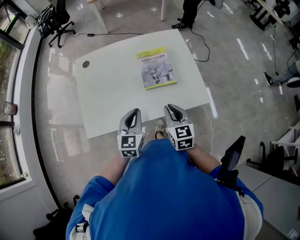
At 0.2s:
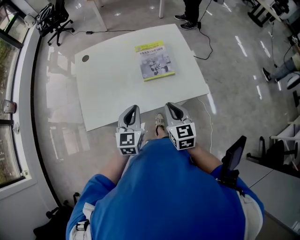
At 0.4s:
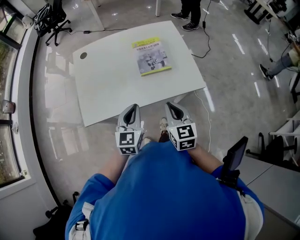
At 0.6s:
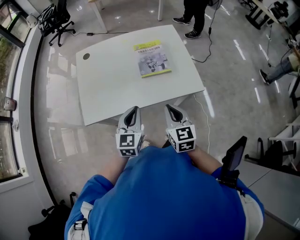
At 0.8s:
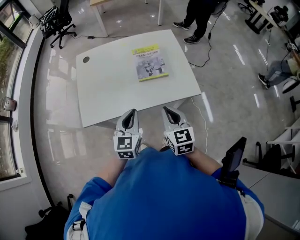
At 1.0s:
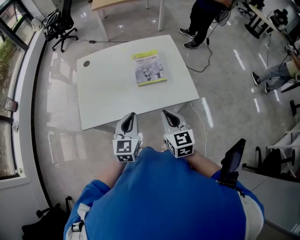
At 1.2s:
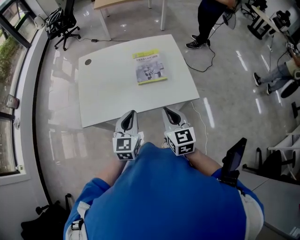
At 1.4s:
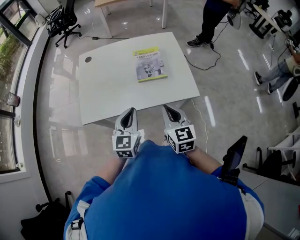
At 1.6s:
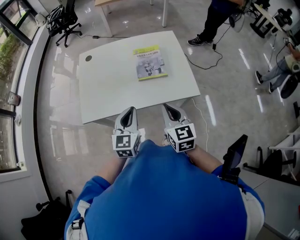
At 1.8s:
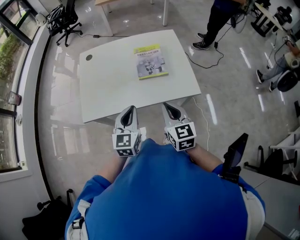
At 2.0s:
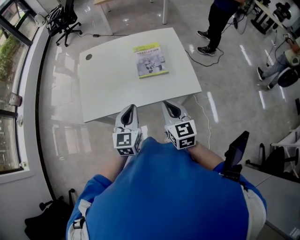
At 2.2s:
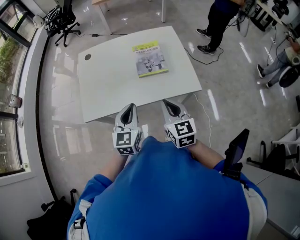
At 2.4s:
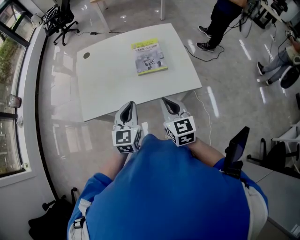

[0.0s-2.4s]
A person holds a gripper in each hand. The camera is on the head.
0.0s to 1.2s: Both grippers travel together backward and upward, approximately 10 cm.
1.2s to 2.4s: Both grippers stay about where they are.

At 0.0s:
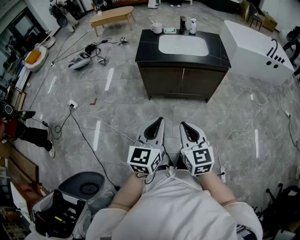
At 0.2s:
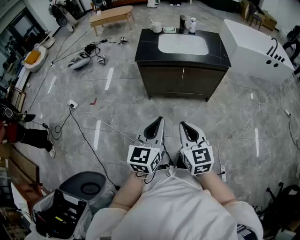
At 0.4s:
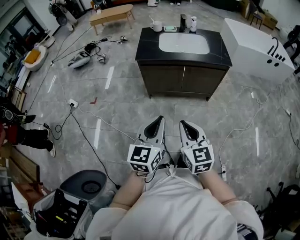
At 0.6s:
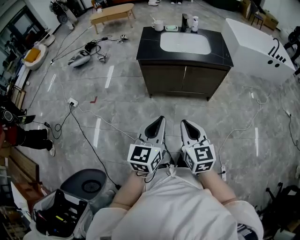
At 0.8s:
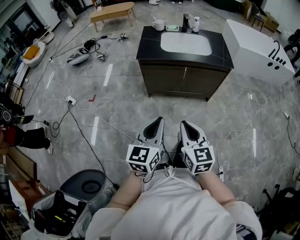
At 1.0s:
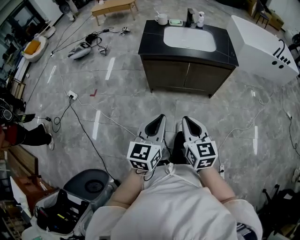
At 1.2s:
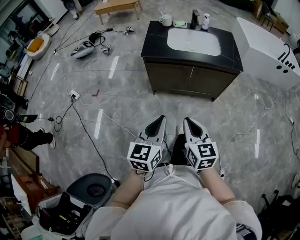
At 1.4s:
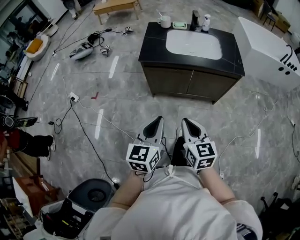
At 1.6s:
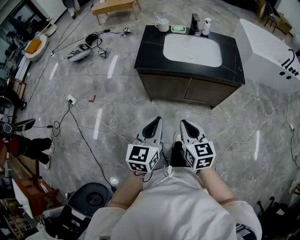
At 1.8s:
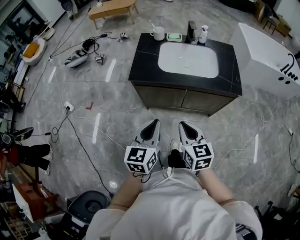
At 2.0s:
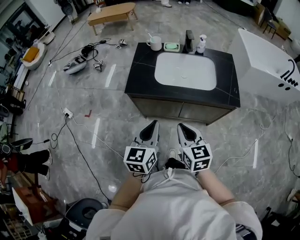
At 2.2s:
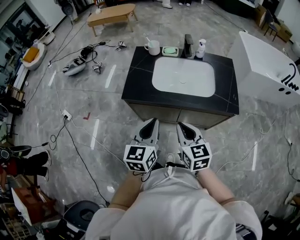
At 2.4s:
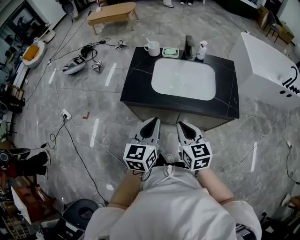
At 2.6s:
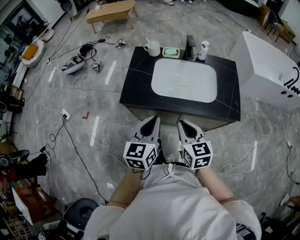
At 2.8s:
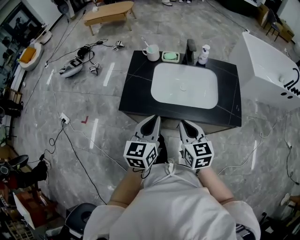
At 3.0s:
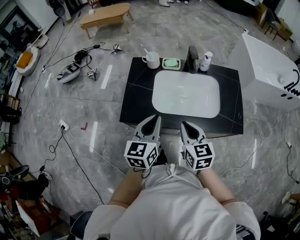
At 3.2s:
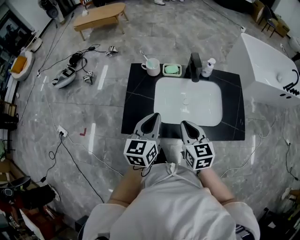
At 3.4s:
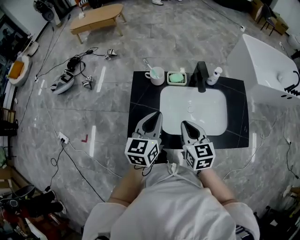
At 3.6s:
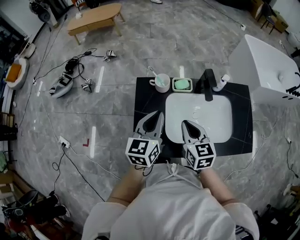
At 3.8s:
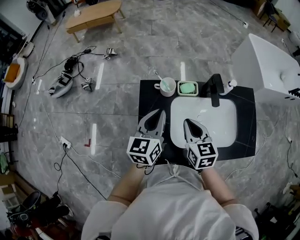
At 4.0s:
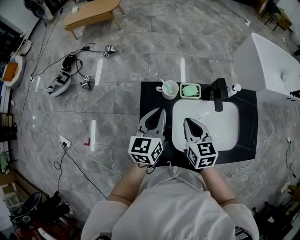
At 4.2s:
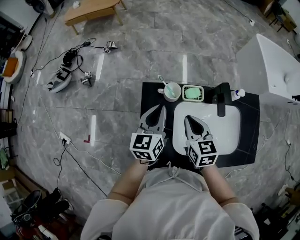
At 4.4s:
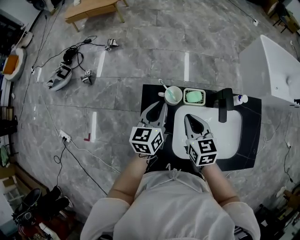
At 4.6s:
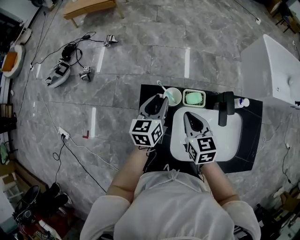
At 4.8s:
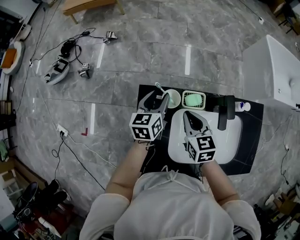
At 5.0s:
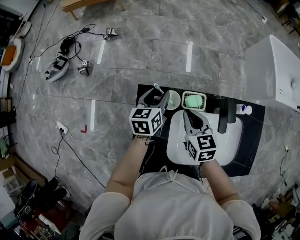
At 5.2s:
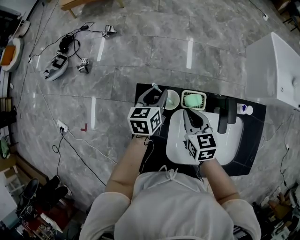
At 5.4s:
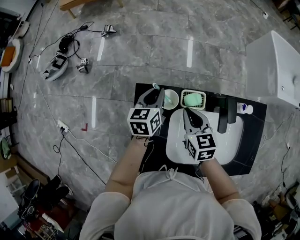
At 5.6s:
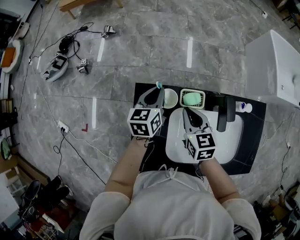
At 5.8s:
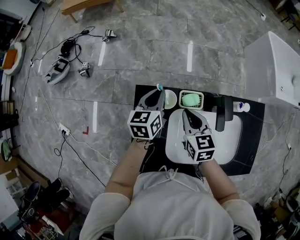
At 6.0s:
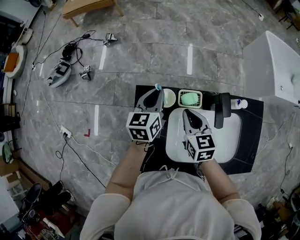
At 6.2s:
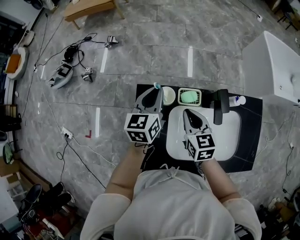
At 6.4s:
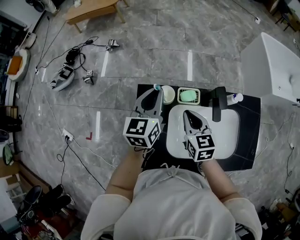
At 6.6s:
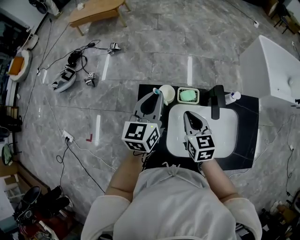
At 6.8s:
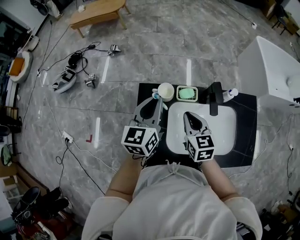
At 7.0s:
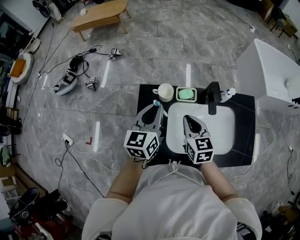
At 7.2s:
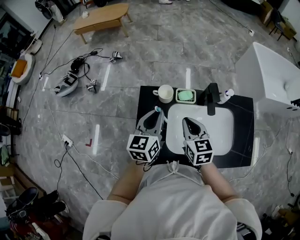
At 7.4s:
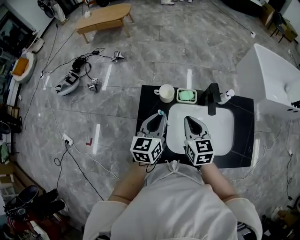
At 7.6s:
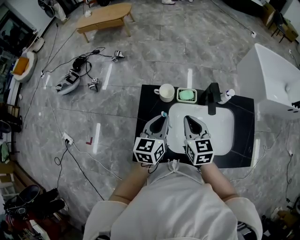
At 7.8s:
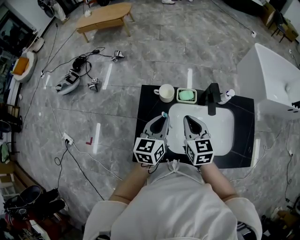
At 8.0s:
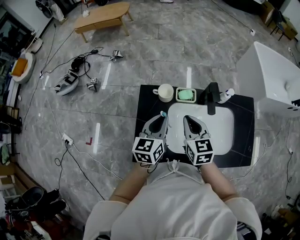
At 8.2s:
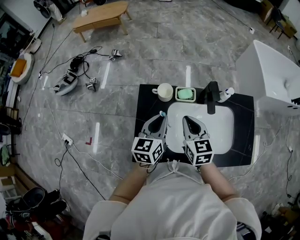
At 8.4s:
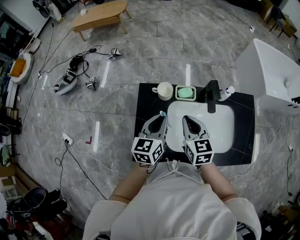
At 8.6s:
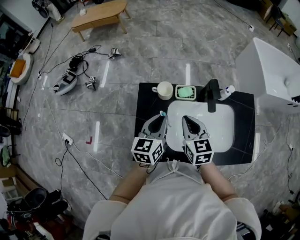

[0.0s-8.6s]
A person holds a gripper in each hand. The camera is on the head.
0.0s to 1.4s: Both grippers travel together forward, some 10 cm.
1.4s to 2.8s: Both grippers move forward, roughly 35 cm.
2.8s to 4.4s: Both grippers move forward, approximately 40 cm.
4.4s to 5.8s: The right gripper travels forward by about 5 cm. The left gripper shifts roughly 10 cm forward, and opens, then closes again.
5.8s to 7.2s: The left gripper shifts roughly 20 cm backward and upward. The right gripper moves backward and upward, approximately 10 cm.
7.2s to 8.6s: The grippers make only small movements.

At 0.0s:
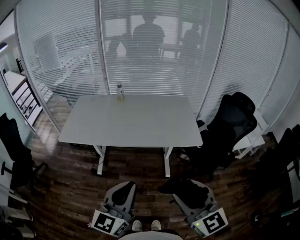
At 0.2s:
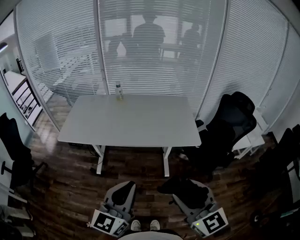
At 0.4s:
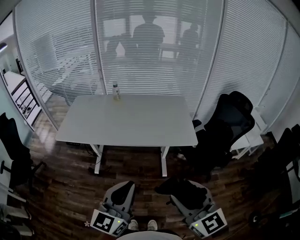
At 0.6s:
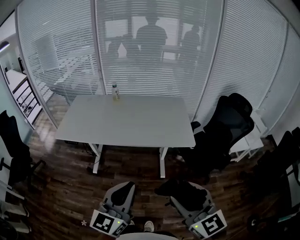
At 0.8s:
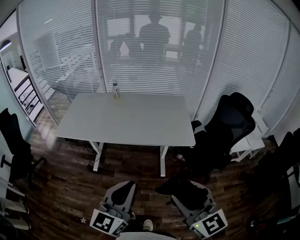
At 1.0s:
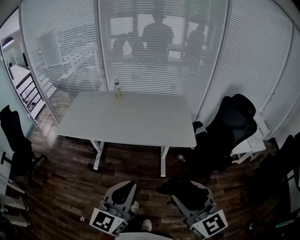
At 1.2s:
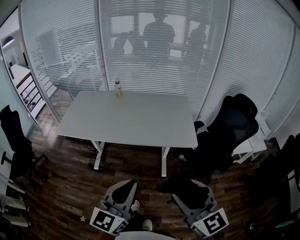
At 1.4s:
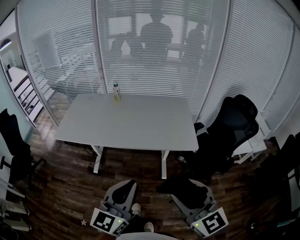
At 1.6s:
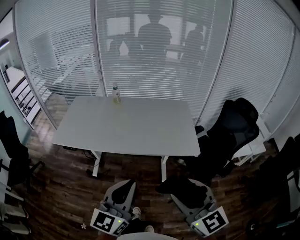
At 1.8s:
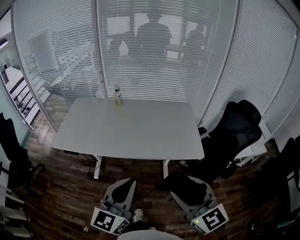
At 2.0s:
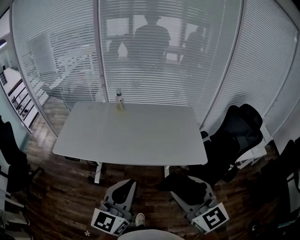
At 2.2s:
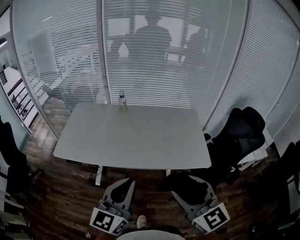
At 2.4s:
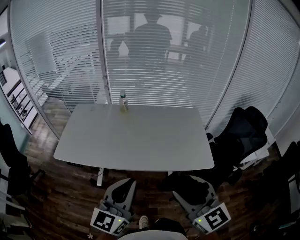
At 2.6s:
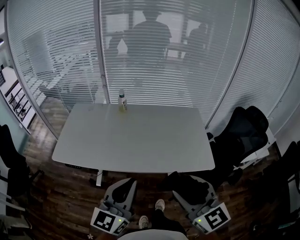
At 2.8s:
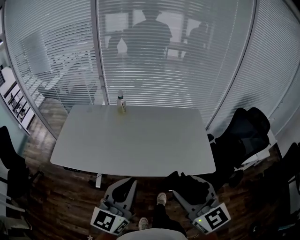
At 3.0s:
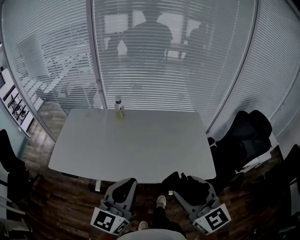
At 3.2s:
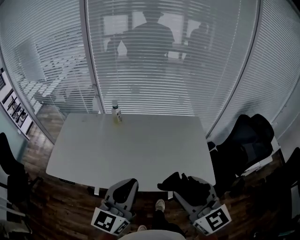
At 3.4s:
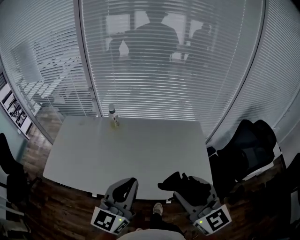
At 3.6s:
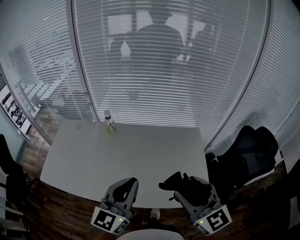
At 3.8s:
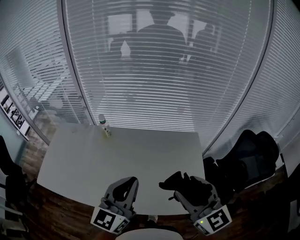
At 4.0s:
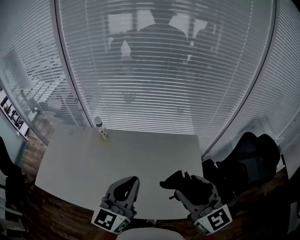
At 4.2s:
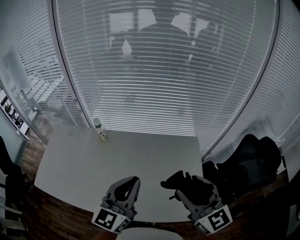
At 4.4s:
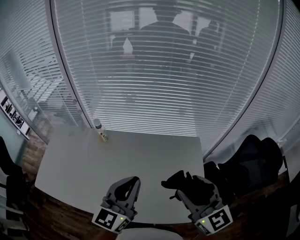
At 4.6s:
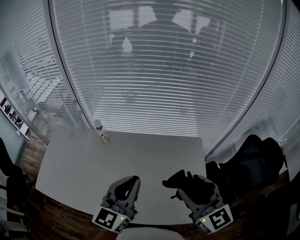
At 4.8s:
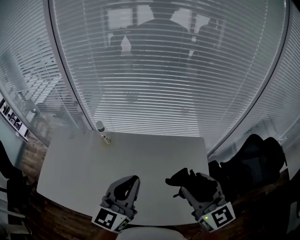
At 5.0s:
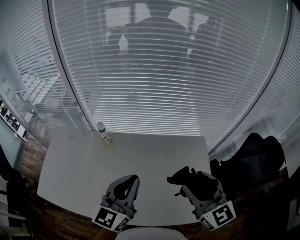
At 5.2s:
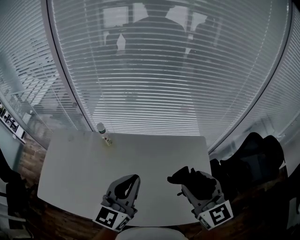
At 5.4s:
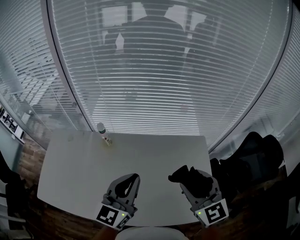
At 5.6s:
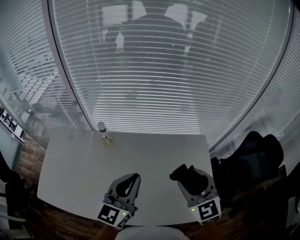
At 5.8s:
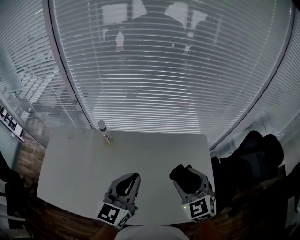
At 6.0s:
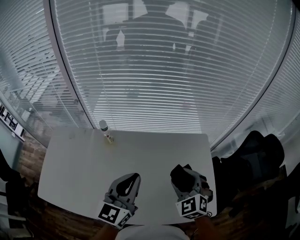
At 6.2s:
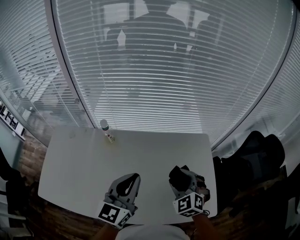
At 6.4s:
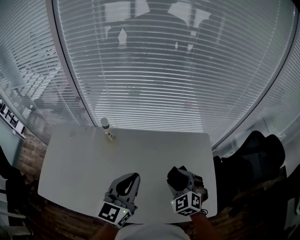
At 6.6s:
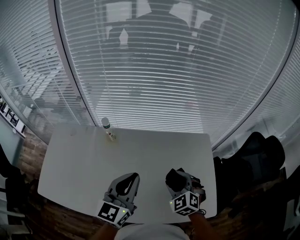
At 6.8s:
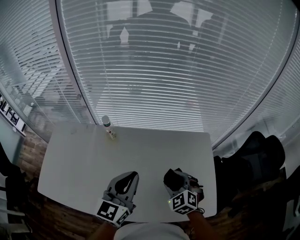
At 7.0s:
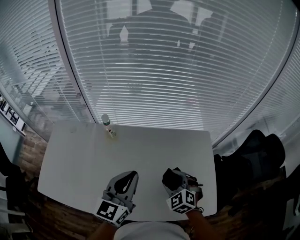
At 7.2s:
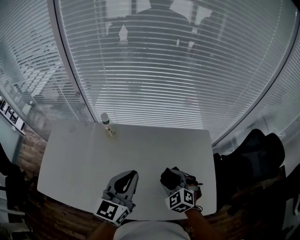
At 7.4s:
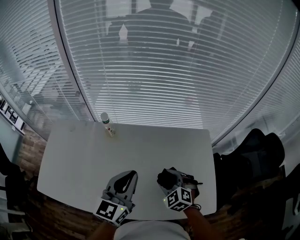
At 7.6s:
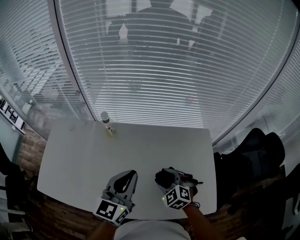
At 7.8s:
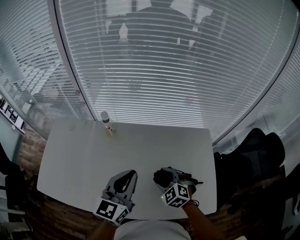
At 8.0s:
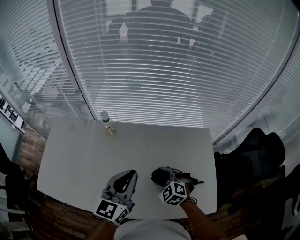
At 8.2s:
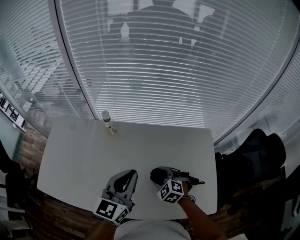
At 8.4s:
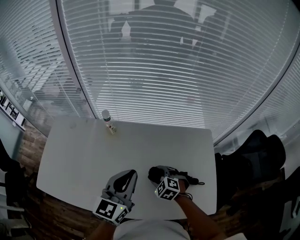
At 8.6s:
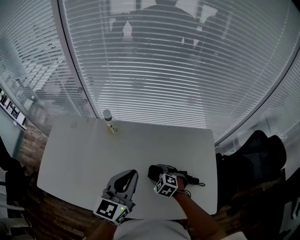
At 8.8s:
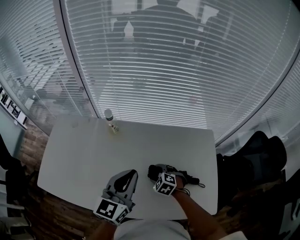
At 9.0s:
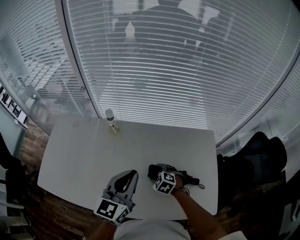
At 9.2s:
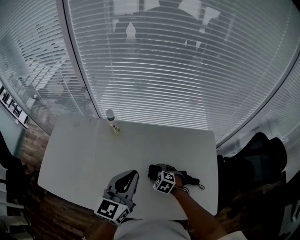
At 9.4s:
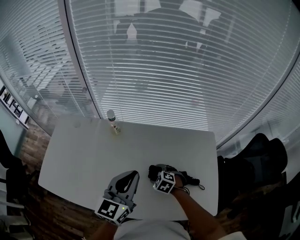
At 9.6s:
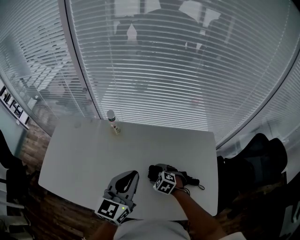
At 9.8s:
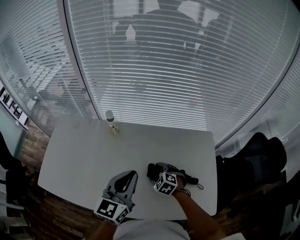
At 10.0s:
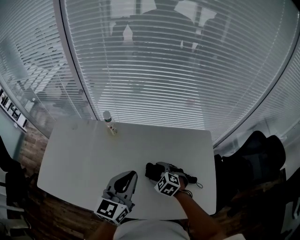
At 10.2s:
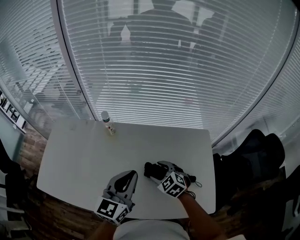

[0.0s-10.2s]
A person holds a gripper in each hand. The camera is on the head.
0.0s to 1.4s: Both grippers move to the right, about 5 cm.
1.4s to 3.0s: The grippers both shift forward by about 25 cm.
3.0s to 4.4s: Both grippers travel together forward and to the right, approximately 30 cm.
4.4s to 5.8s: The right gripper goes approximately 15 cm downward, to the left and forward, and turns by some 30 degrees; the left gripper is displaced to the left by about 10 cm.
5.8s to 7.2s: The right gripper is displaced downward by about 15 cm.
7.2s to 8.8s: The right gripper goes some 15 cm downward and to the left, and rotates roughly 20 degrees.
8.8s to 10.2s: The right gripper heads upward, covering some 10 cm.

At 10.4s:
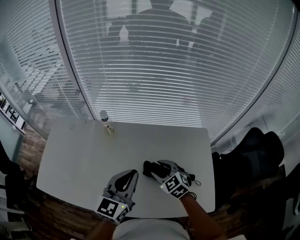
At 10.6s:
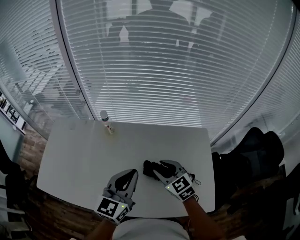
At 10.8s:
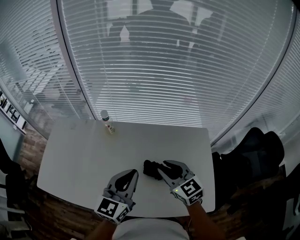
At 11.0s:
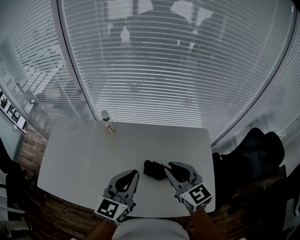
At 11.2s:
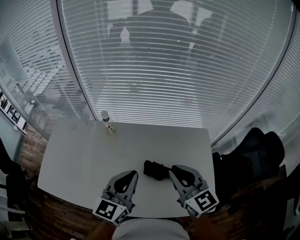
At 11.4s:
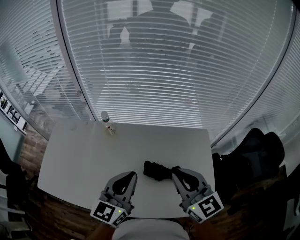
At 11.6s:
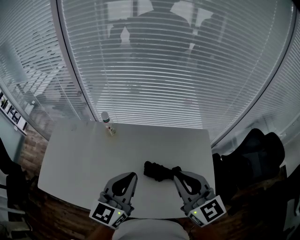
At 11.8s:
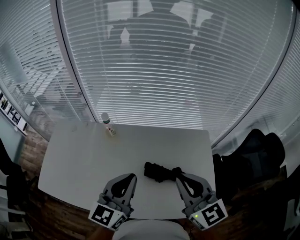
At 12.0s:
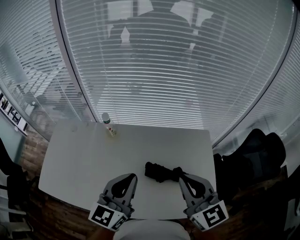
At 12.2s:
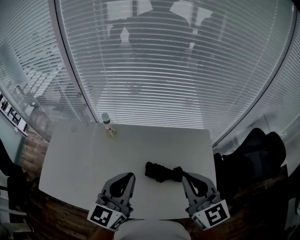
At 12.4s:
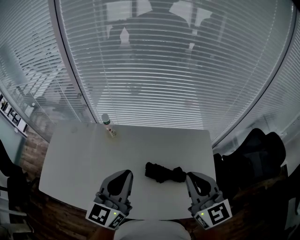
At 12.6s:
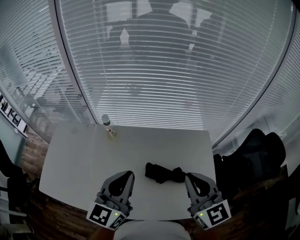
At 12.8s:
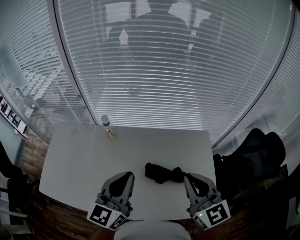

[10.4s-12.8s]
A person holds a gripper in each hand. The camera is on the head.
10.4s to 11.6s: The right gripper shifts approximately 20 cm upward, points its fingers about 30 degrees further upward, and closes.
11.6s to 12.8s: There are only small adjustments of the grippers.
